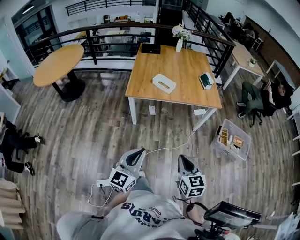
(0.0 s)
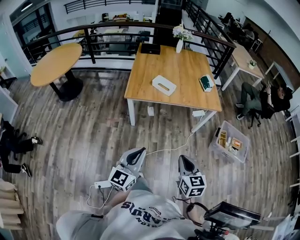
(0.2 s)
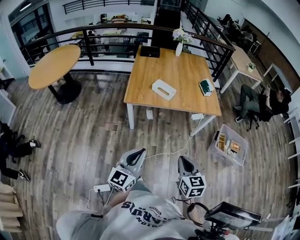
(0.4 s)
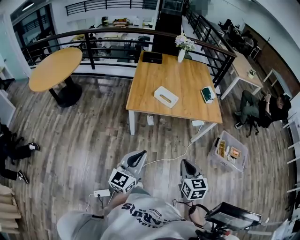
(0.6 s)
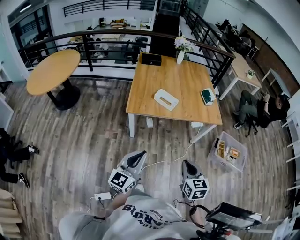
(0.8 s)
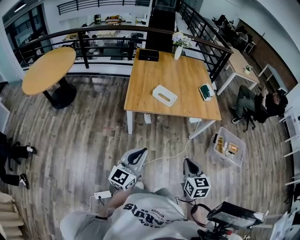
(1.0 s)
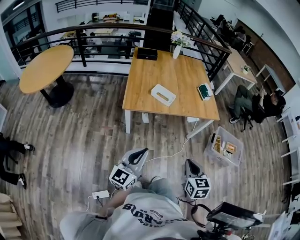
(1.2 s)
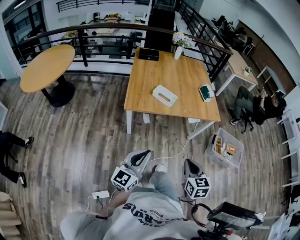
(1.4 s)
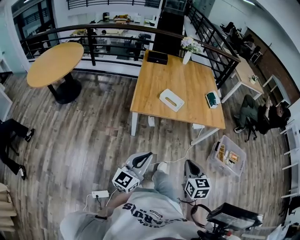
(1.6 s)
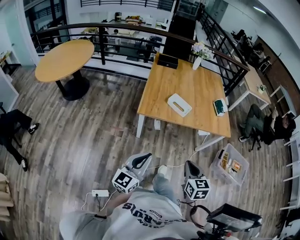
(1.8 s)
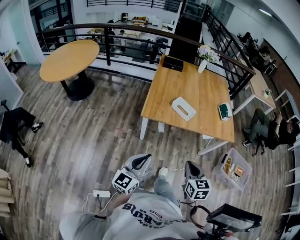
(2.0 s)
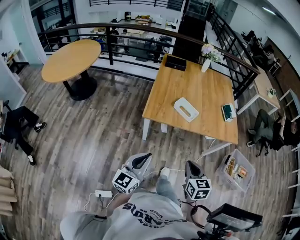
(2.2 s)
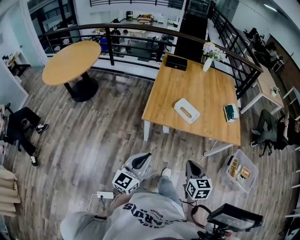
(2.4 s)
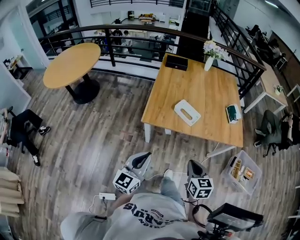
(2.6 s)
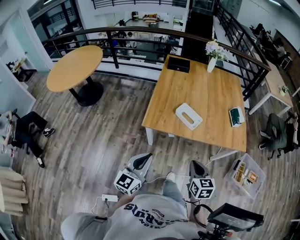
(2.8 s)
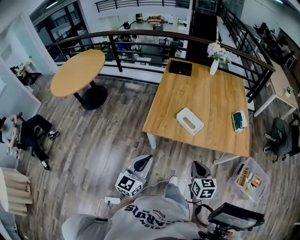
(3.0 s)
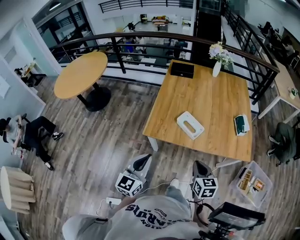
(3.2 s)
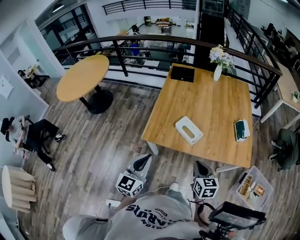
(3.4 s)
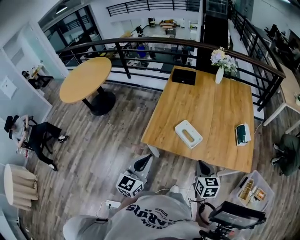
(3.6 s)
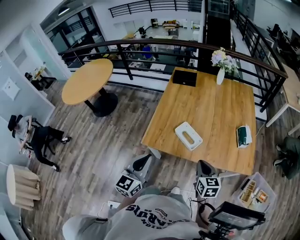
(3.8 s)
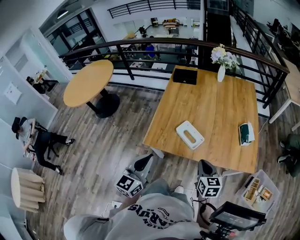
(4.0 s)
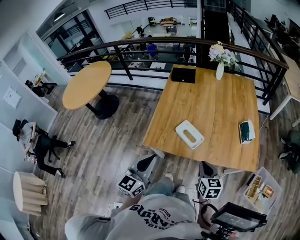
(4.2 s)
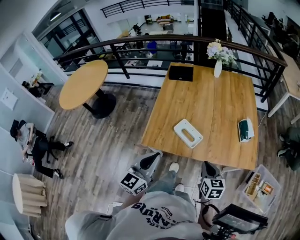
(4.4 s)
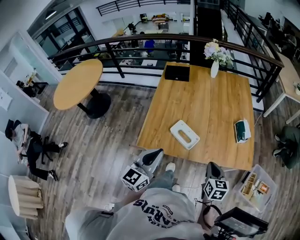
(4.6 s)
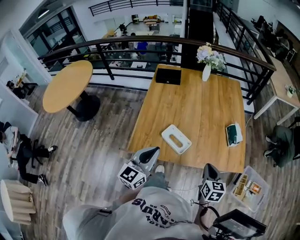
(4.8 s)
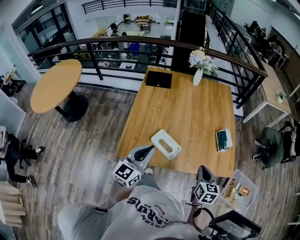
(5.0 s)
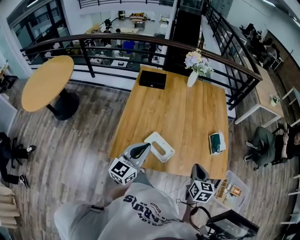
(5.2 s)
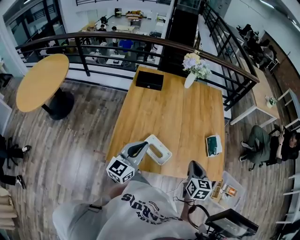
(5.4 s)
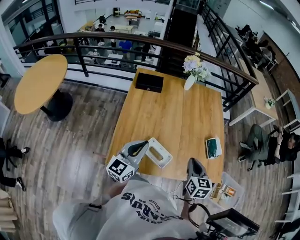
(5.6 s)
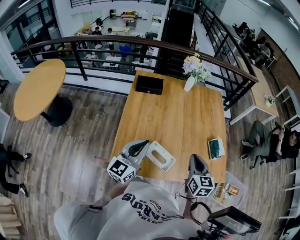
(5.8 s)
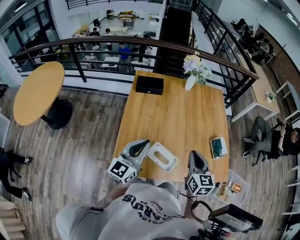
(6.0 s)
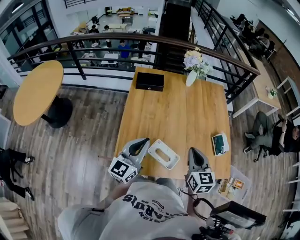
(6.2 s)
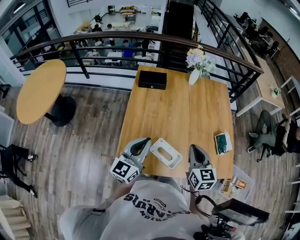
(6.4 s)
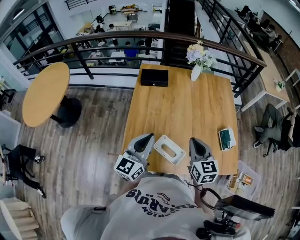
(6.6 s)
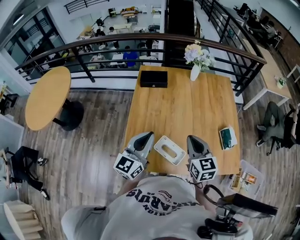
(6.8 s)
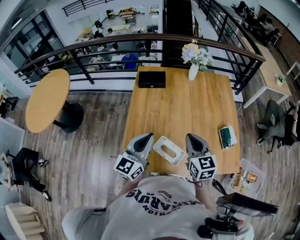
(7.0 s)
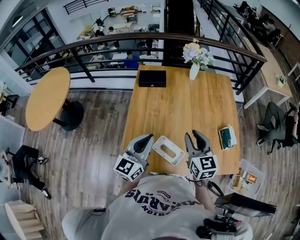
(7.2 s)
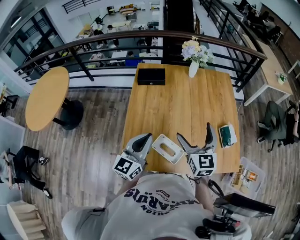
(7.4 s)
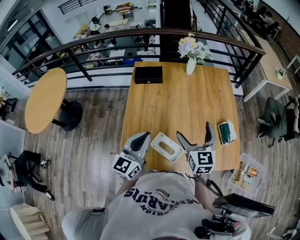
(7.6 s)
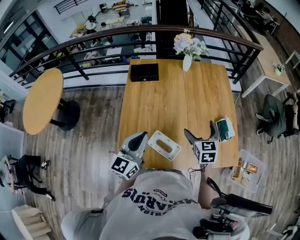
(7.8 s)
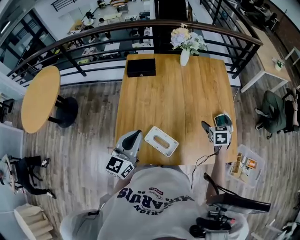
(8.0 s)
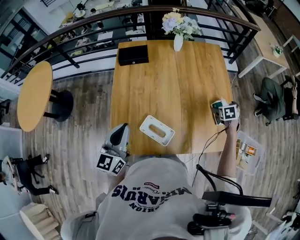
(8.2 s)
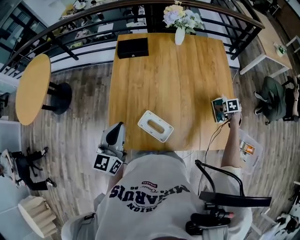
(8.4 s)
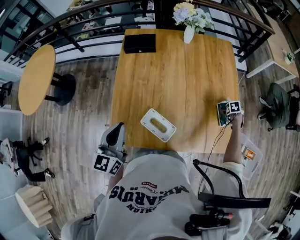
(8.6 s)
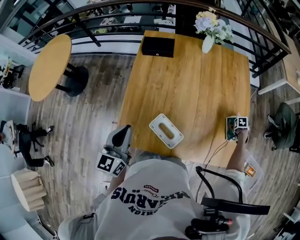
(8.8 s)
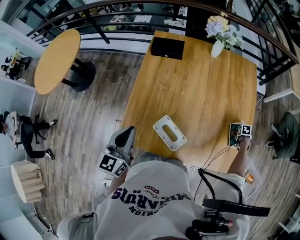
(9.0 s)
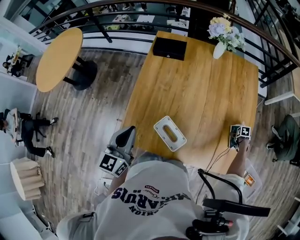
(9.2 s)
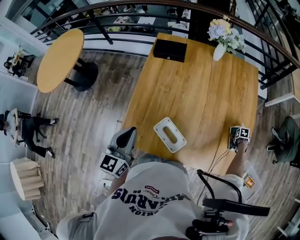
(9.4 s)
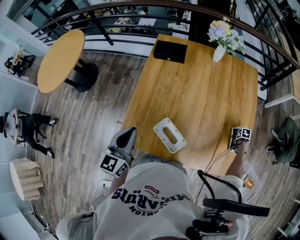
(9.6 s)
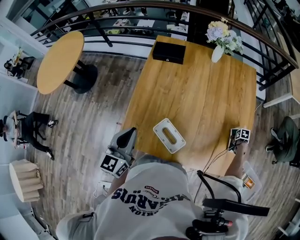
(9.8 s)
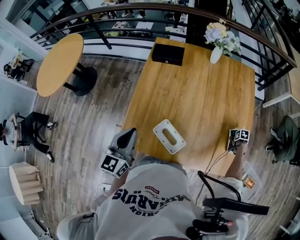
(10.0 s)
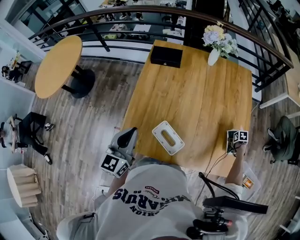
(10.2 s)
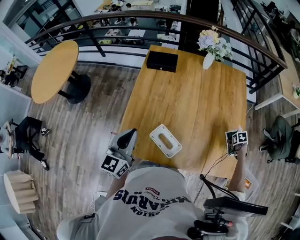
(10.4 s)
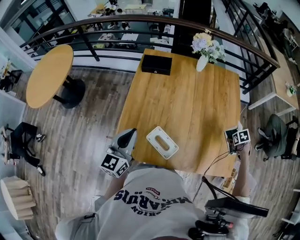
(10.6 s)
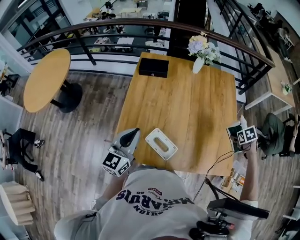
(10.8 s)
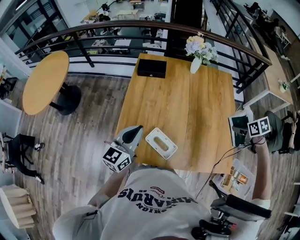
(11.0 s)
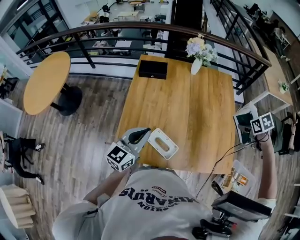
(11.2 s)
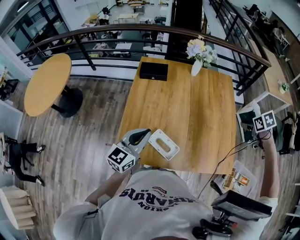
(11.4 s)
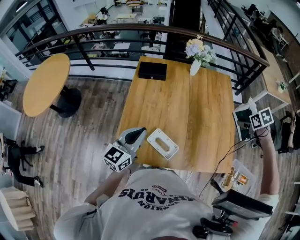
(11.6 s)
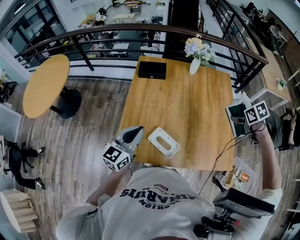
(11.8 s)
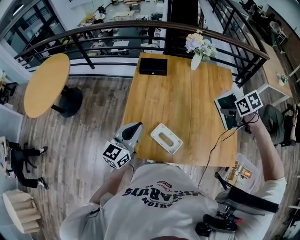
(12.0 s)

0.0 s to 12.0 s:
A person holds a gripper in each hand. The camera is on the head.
0.0 to 1.6 s: Both grippers travel together forward and to the left, some 20 cm.
1.6 to 3.0 s: Both grippers move forward, approximately 25 cm.
3.0 to 4.4 s: The two grippers go some 20 cm forward and to the right.
4.4 to 6.0 s: The left gripper travels forward and to the left by some 25 cm. The right gripper shifts approximately 25 cm forward, upward and to the left.
6.0 to 7.6 s: The right gripper goes about 10 cm forward, and opens.
7.6 to 9.0 s: The right gripper is displaced downward by about 40 cm, and angles its fingers downward, by some 70 degrees, while the left gripper changes place by some 5 cm, and turns by about 20 degrees.
9.0 to 10.4 s: The right gripper heads upward, covering roughly 10 cm, and closes.
10.4 to 12.0 s: The right gripper moves upward, some 35 cm, and rotates approximately 20 degrees.

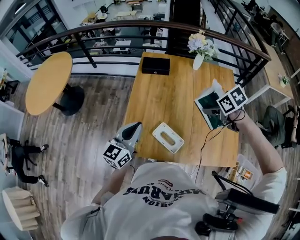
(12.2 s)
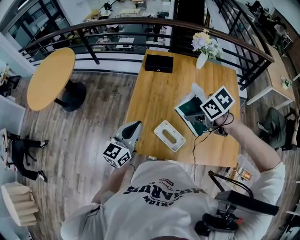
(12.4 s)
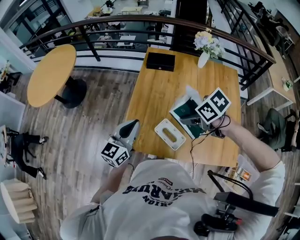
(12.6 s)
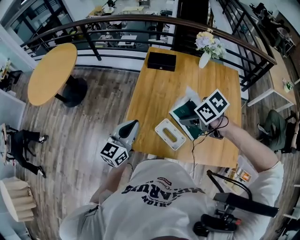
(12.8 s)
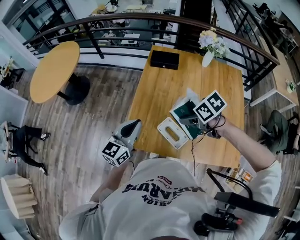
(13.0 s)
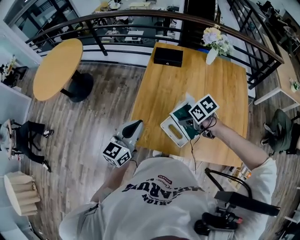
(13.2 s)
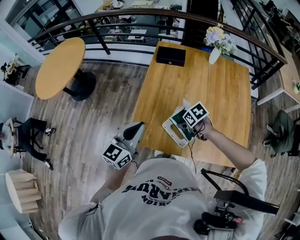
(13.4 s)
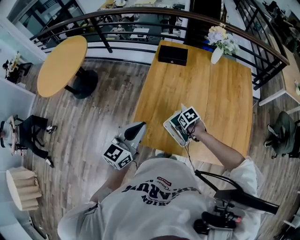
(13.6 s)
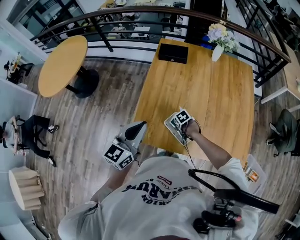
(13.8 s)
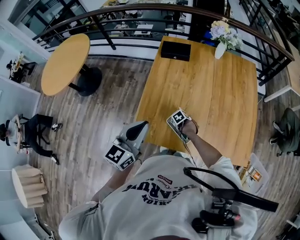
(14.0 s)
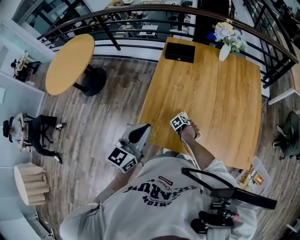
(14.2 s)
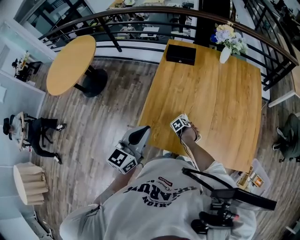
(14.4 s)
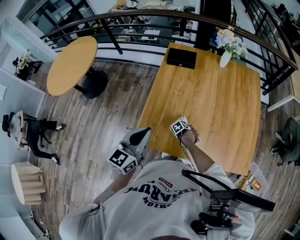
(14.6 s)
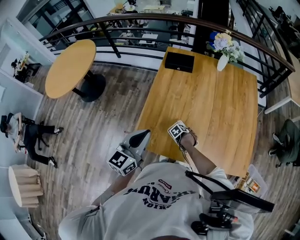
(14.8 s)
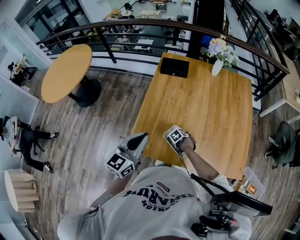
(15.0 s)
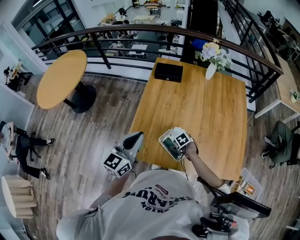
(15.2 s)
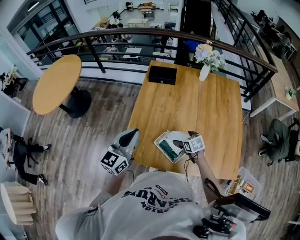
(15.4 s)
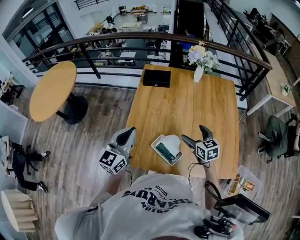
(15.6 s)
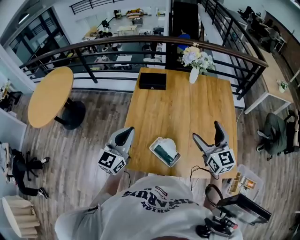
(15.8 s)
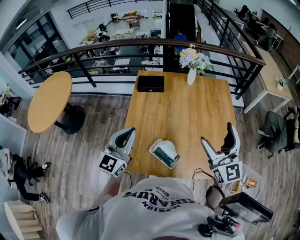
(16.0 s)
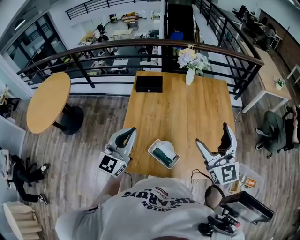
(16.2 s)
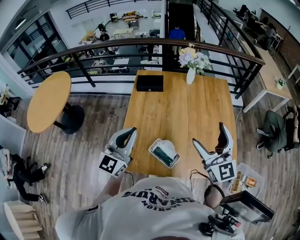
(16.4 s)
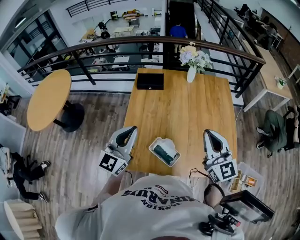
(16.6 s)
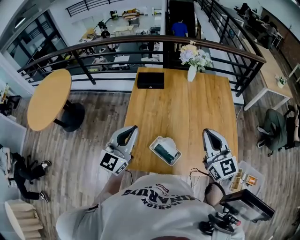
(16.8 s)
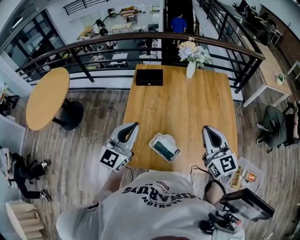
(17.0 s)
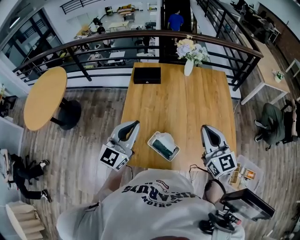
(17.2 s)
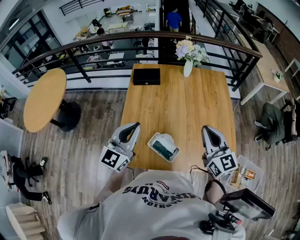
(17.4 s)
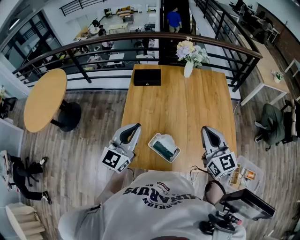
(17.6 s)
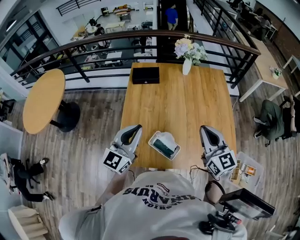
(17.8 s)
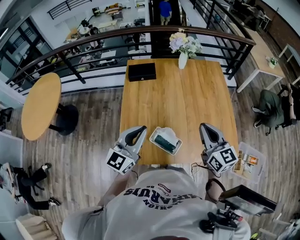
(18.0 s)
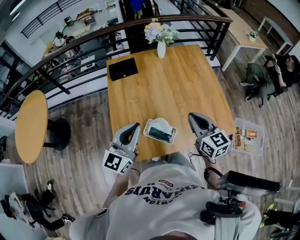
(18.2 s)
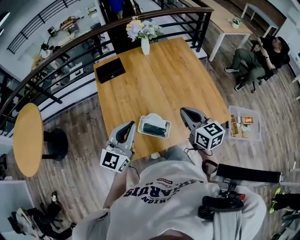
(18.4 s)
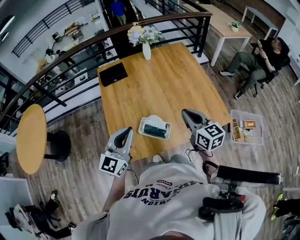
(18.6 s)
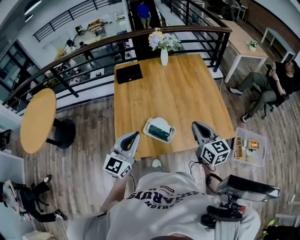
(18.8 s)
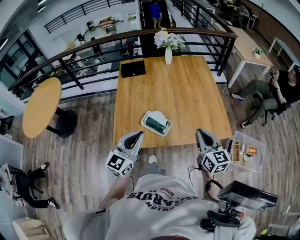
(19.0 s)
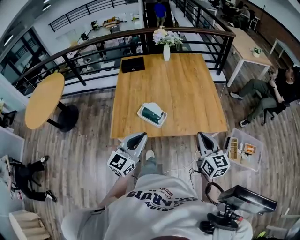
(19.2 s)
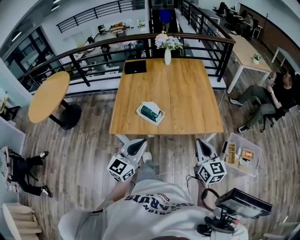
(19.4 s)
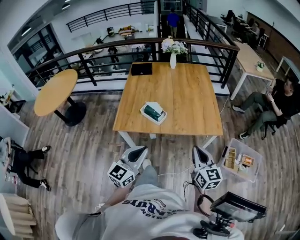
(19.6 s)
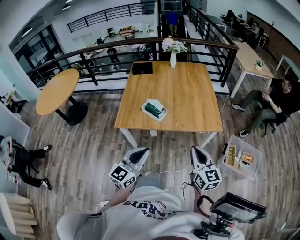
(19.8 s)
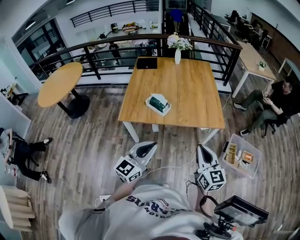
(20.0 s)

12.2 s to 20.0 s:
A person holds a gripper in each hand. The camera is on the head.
12.2 to 13.8 s: The right gripper travels downward by approximately 35 cm, and changes its angle by roughly 20 degrees.
13.8 to 15.4 s: The right gripper travels upward by roughly 15 cm, and changes its angle by about 30 degrees.
15.4 to 16.8 s: The left gripper travels upward by some 5 cm. Meanwhile the right gripper is displaced upward by approximately 30 cm, angles its fingers upward, by approximately 50 degrees, and closes its fingers.
16.8 to 18.4 s: The right gripper heads downward and backward, covering approximately 10 cm, and turns by about 30 degrees. The left gripper travels downward and to the right by some 10 cm, and rotates some 20 degrees.
18.4 to 20.0 s: The two grippers travel together, backward and to the right, approximately 50 cm.

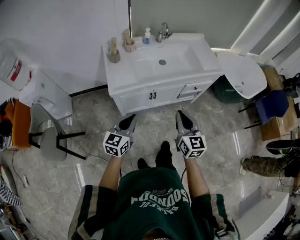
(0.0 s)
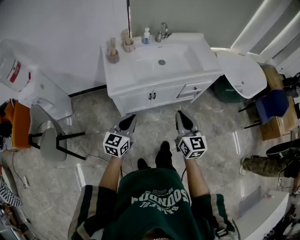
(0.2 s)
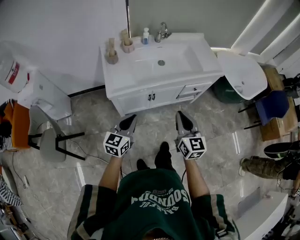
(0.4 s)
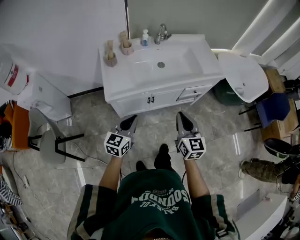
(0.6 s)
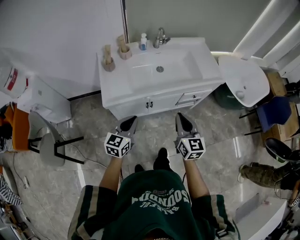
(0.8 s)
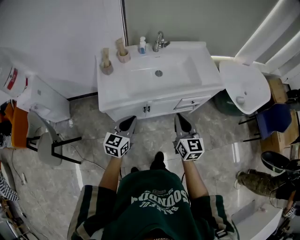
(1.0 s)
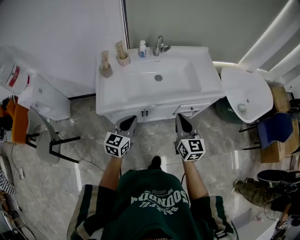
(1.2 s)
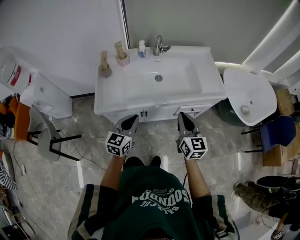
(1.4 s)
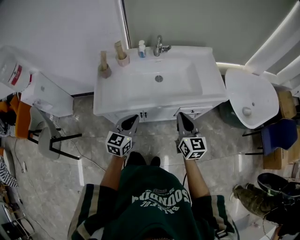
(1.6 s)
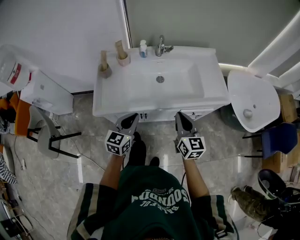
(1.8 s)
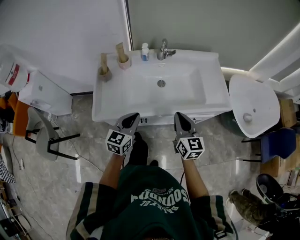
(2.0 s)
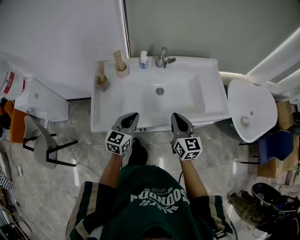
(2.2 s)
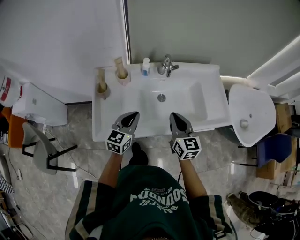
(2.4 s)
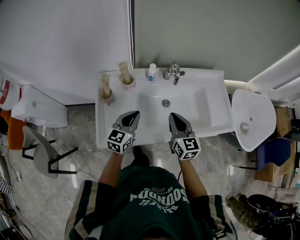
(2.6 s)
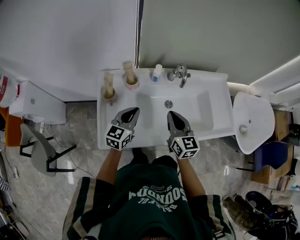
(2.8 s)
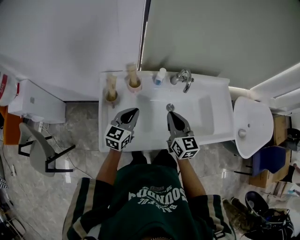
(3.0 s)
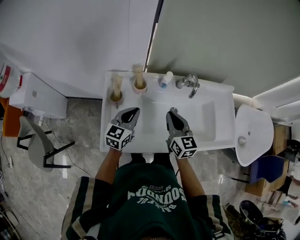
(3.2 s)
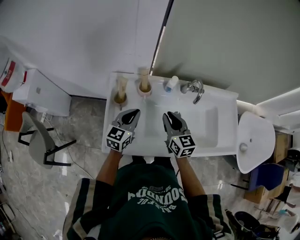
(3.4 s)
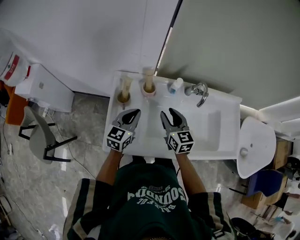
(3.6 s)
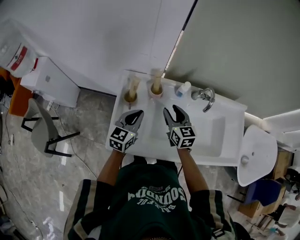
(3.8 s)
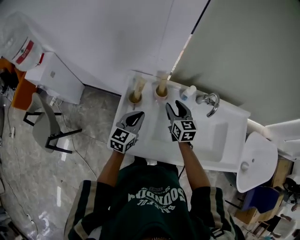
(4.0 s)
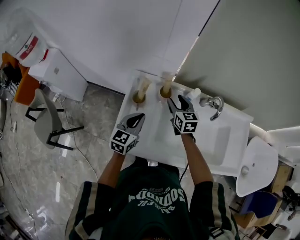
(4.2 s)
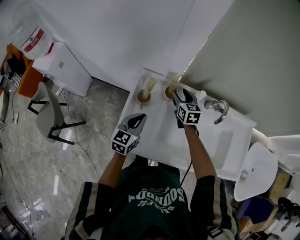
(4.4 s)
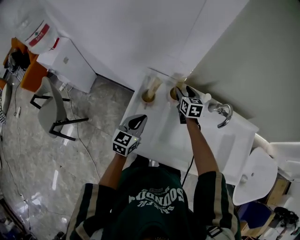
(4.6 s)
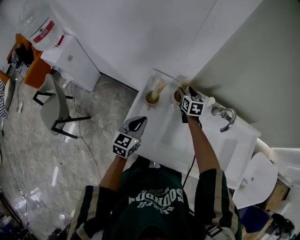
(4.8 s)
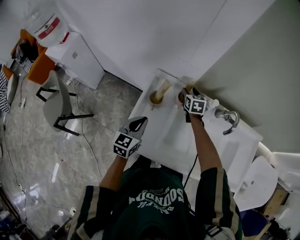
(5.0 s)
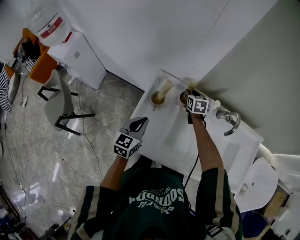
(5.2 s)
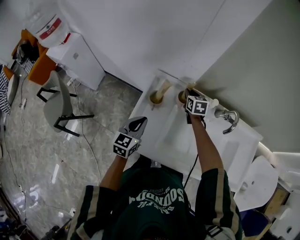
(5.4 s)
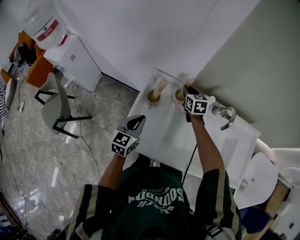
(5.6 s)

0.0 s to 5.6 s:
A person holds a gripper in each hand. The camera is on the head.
0.0 to 1.4 s: Both grippers travel together forward and to the right, roughly 25 cm.
1.4 to 2.8 s: The two grippers go about 30 cm forward and to the left.
2.8 to 4.2 s: The left gripper travels to the left by roughly 10 cm, while the right gripper heads forward, to the left and downward, covering about 25 cm, rotates approximately 20 degrees, and opens up.
4.2 to 5.6 s: The left gripper heads to the left, covering about 5 cm. Meanwhile the right gripper travels forward by some 10 cm, and closes up.
